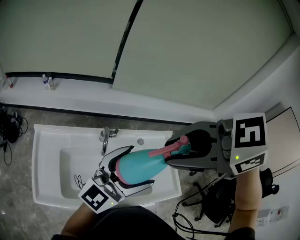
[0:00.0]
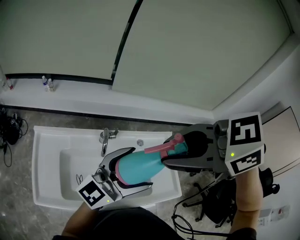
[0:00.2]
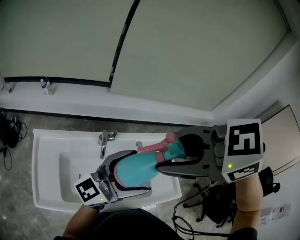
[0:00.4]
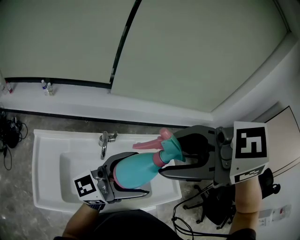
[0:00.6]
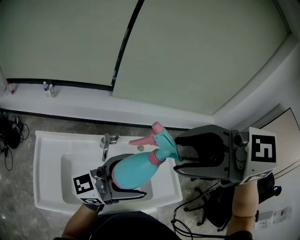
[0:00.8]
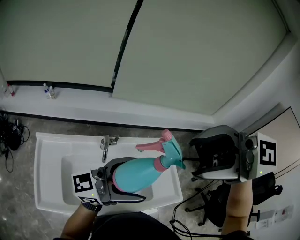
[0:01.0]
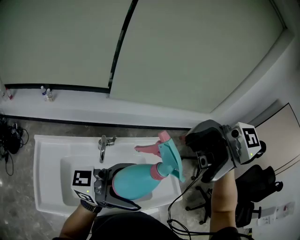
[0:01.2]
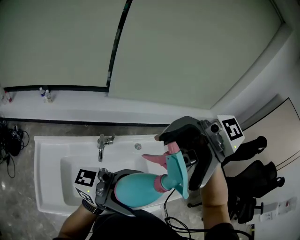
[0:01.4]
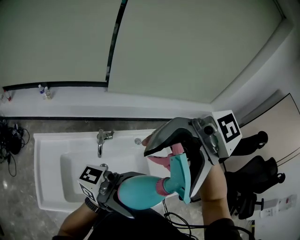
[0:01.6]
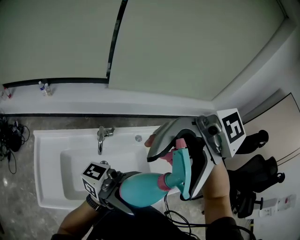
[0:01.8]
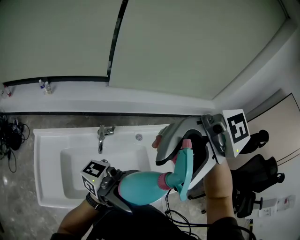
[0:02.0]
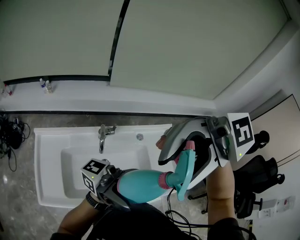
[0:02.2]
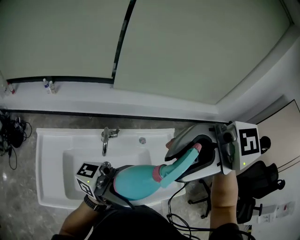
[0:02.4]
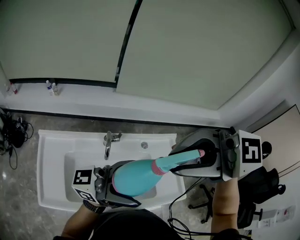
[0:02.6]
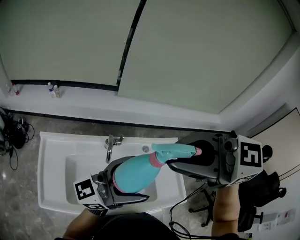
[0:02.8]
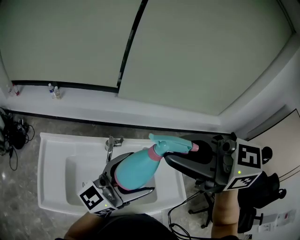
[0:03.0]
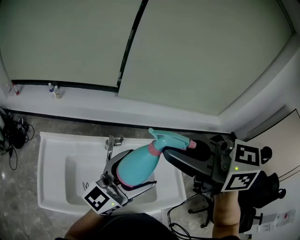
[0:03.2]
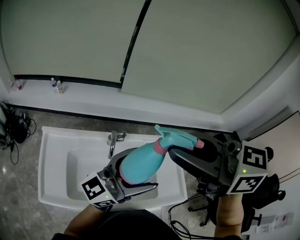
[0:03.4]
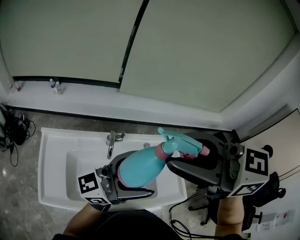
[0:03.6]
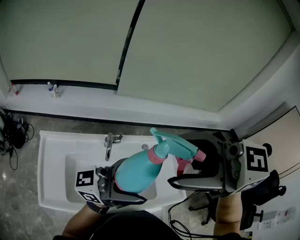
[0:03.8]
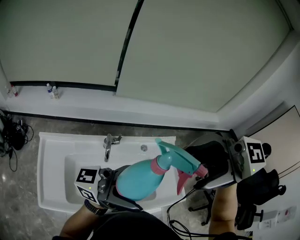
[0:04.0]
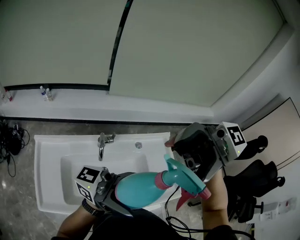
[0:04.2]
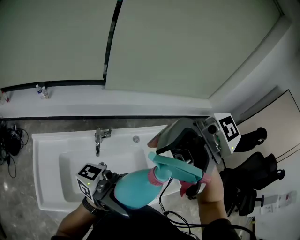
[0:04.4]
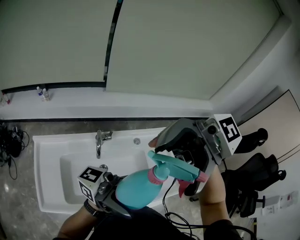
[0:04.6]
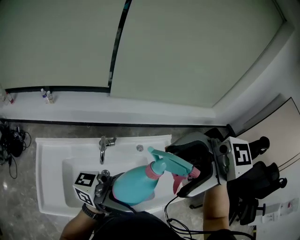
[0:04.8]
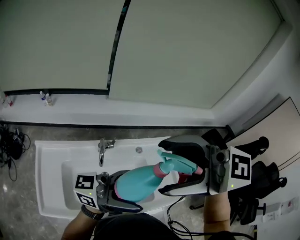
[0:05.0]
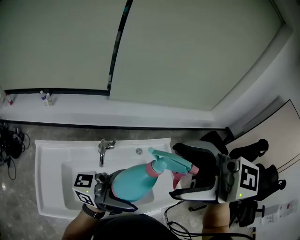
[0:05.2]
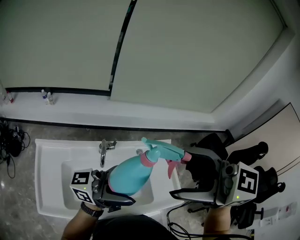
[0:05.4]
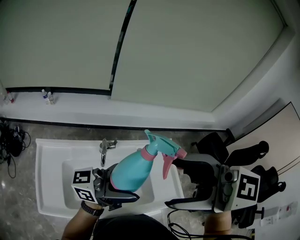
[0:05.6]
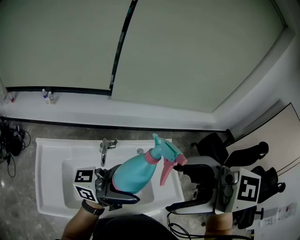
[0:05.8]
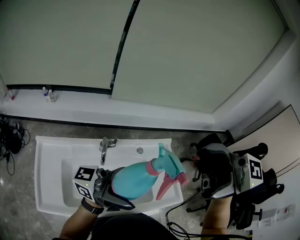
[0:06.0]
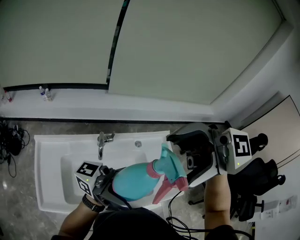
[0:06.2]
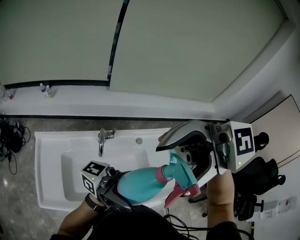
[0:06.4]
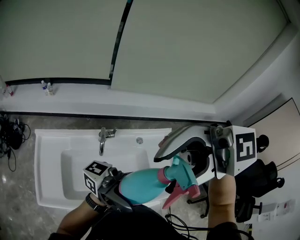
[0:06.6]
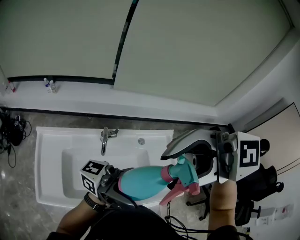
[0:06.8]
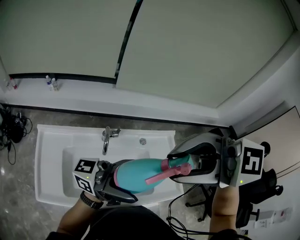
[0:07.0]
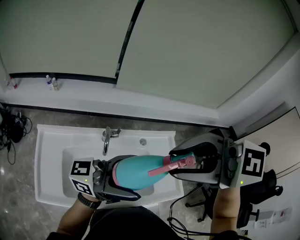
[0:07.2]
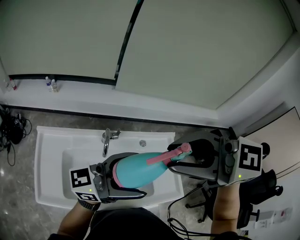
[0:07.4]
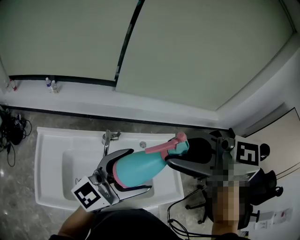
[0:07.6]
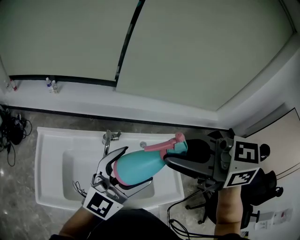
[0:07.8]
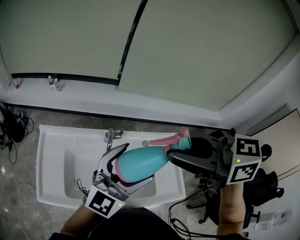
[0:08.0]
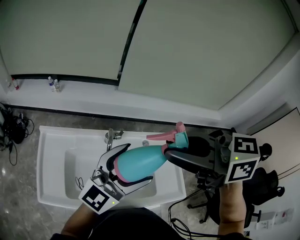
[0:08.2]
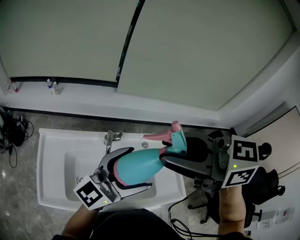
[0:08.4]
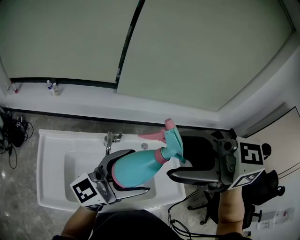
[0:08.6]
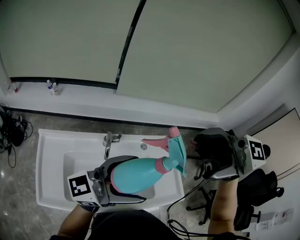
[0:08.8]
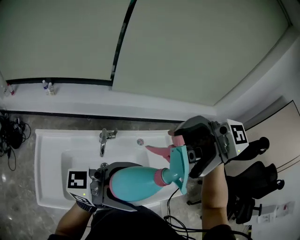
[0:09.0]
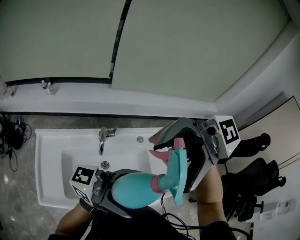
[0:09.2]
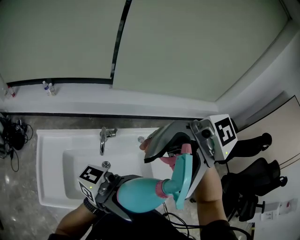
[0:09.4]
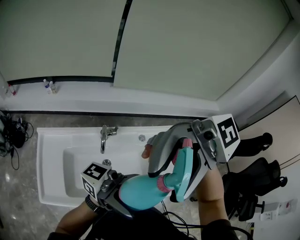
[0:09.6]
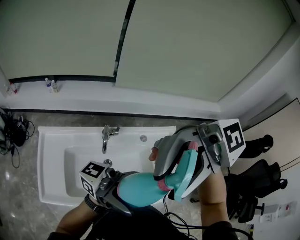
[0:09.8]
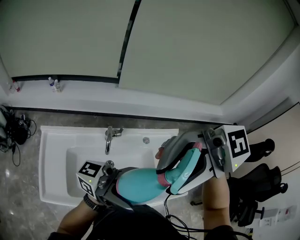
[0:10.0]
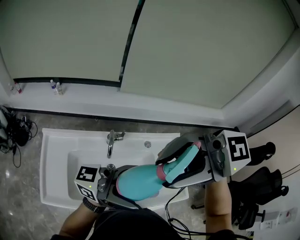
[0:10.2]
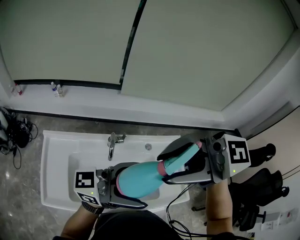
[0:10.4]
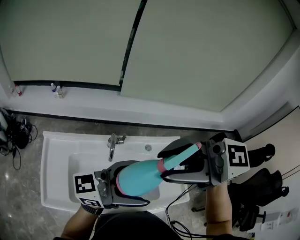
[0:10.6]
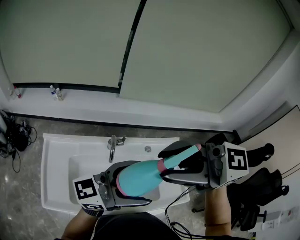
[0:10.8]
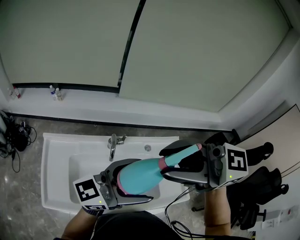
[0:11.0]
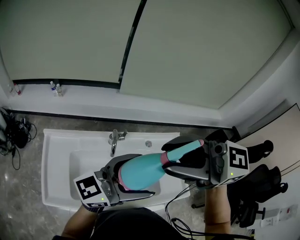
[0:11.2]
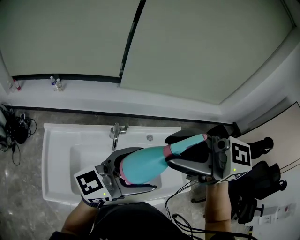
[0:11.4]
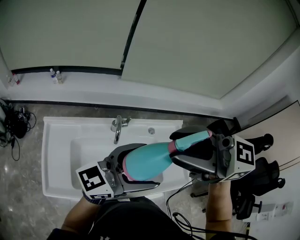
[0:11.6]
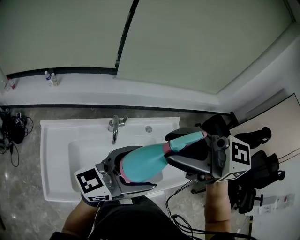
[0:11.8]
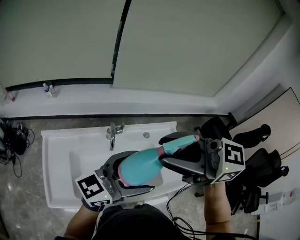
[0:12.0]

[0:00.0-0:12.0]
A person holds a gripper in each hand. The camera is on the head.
0:00.0 to 0:01.6: The left gripper changes place by about 10 cm, and swivels approximately 70 degrees, while the right gripper changes place by about 10 cm, points its fingers about 50 degrees further upward, and opens.
0:01.6 to 0:03.0: The left gripper moves about 10 cm, and turns by approximately 60 degrees; the right gripper changes place by about 10 cm, turns by about 60 degrees, and closes up.
0:03.0 to 0:04.4: The right gripper shifts by about 10 cm, changes its angle by some 60 degrees, and opens; the left gripper shifts by about 10 cm, and turns by about 70 degrees.
0:04.4 to 0:06.0: The right gripper rotates approximately 40 degrees.
0:06.0 to 0:07.6: The left gripper turns by about 60 degrees; the right gripper changes place by roughly 10 cm, changes its angle by approximately 30 degrees, and closes its fingers.
0:07.6 to 0:09.0: The left gripper shifts by roughly 5 cm, and swivels about 40 degrees. The right gripper shifts by roughly 5 cm, swivels about 40 degrees, and opens its fingers.
0:09.0 to 0:10.4: The right gripper moves roughly 5 cm, and closes up.
0:10.4 to 0:12.0: The right gripper swivels roughly 30 degrees, while the left gripper changes its angle by roughly 20 degrees.

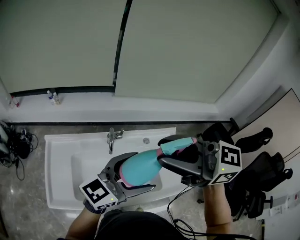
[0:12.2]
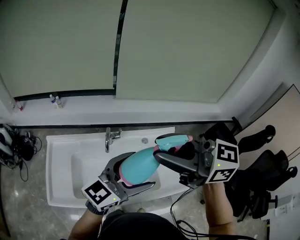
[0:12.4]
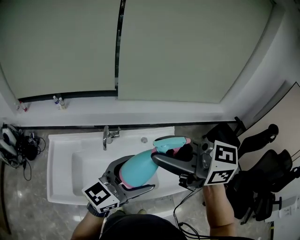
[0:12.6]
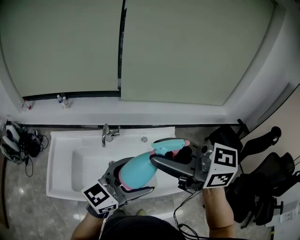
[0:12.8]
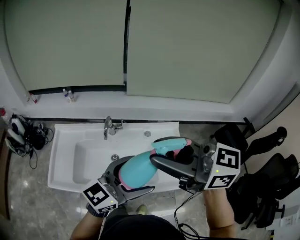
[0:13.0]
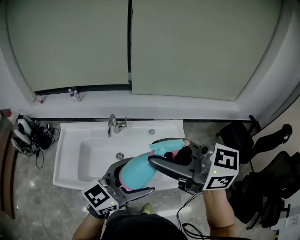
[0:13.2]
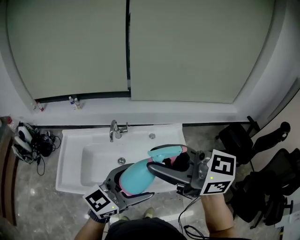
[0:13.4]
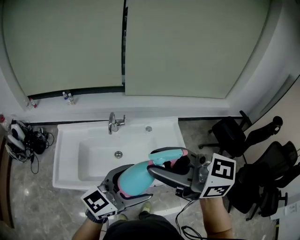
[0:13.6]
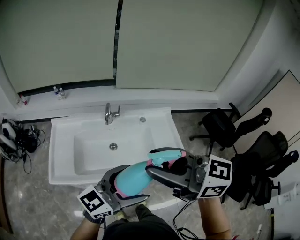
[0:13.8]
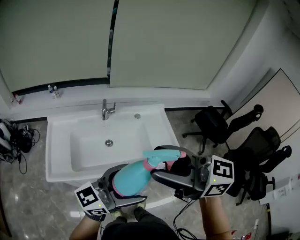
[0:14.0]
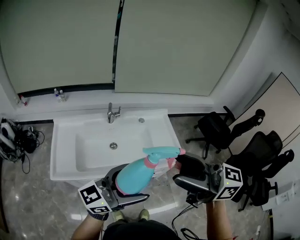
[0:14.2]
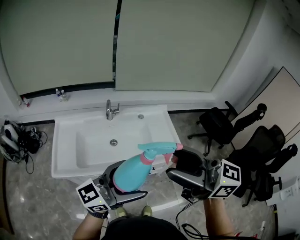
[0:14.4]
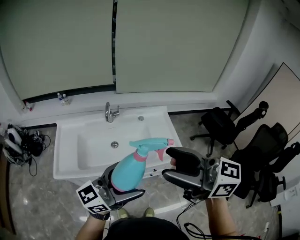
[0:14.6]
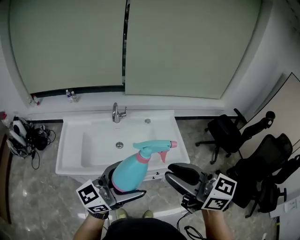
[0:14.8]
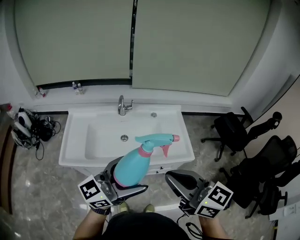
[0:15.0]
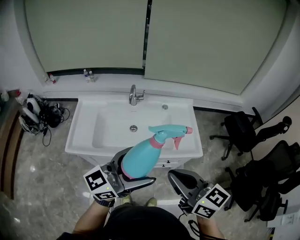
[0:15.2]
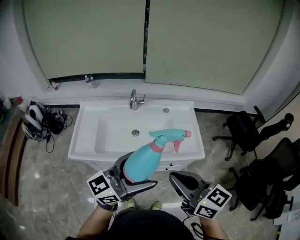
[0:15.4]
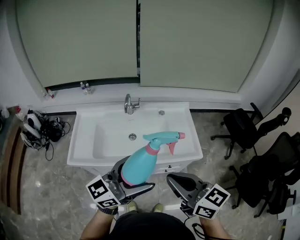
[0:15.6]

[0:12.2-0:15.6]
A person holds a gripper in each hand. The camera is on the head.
0:12.2 to 0:13.8: The right gripper changes place by about 20 cm. Meanwhile the left gripper moves roughly 25 cm.
0:13.8 to 0:15.6: The right gripper changes place by some 20 cm, and closes. The left gripper ends up about 10 cm from where it was.

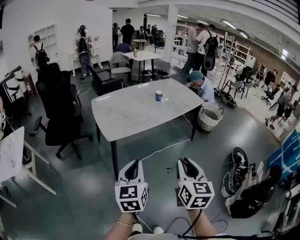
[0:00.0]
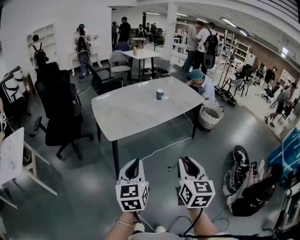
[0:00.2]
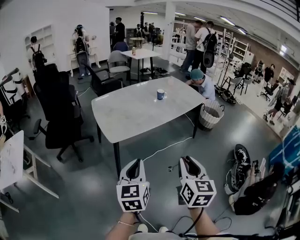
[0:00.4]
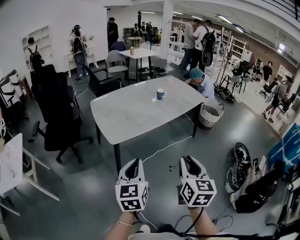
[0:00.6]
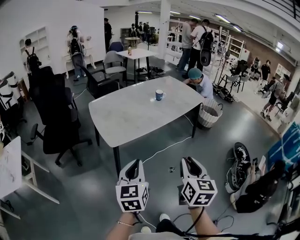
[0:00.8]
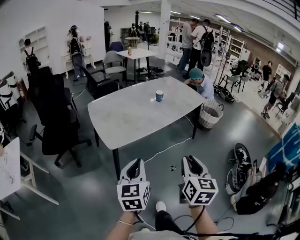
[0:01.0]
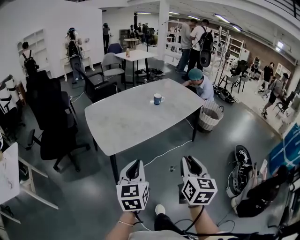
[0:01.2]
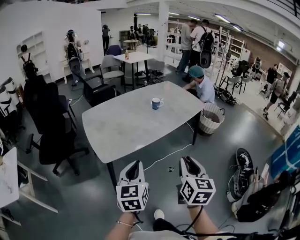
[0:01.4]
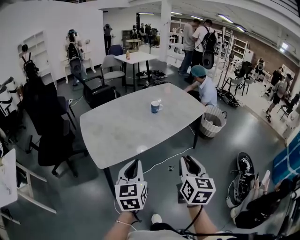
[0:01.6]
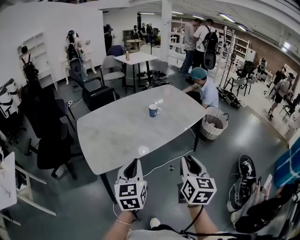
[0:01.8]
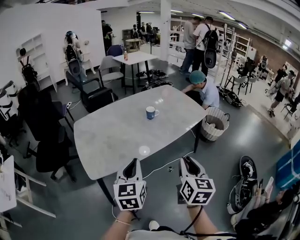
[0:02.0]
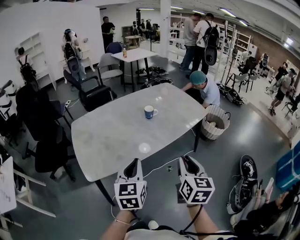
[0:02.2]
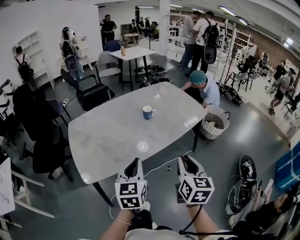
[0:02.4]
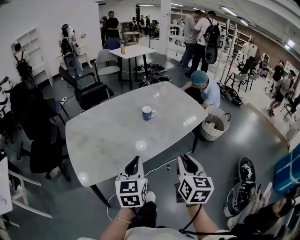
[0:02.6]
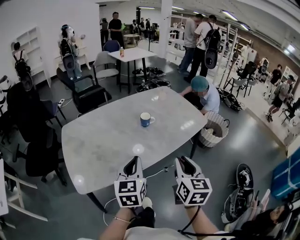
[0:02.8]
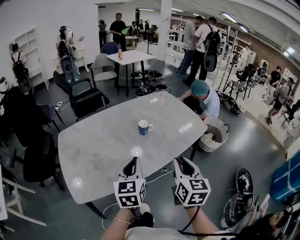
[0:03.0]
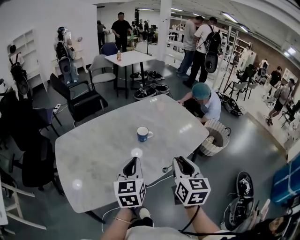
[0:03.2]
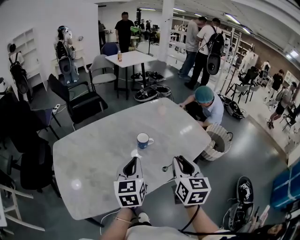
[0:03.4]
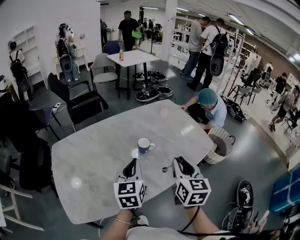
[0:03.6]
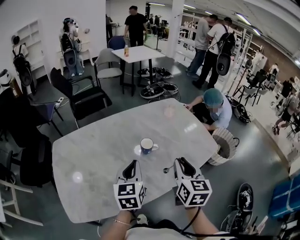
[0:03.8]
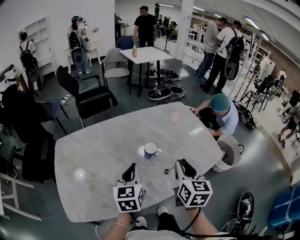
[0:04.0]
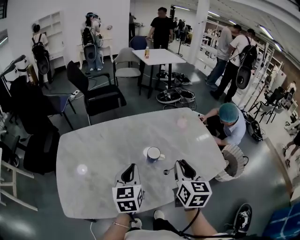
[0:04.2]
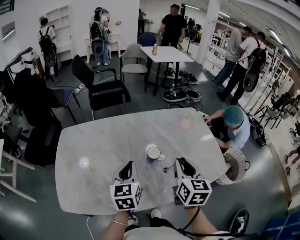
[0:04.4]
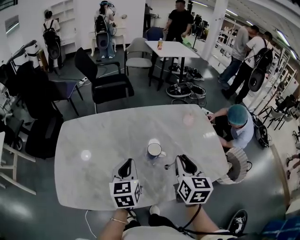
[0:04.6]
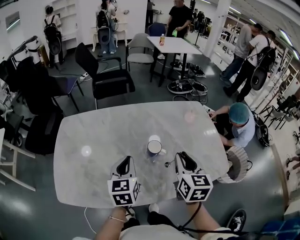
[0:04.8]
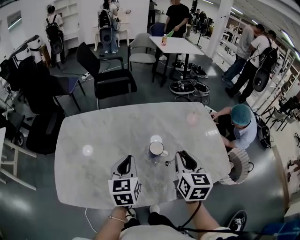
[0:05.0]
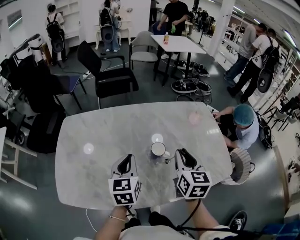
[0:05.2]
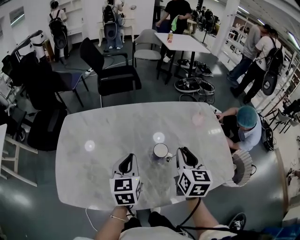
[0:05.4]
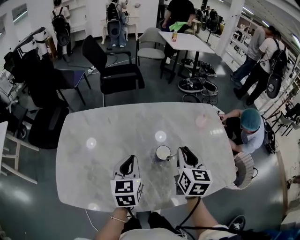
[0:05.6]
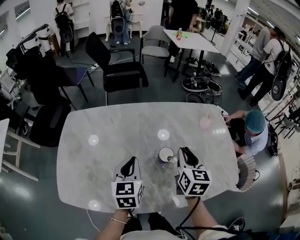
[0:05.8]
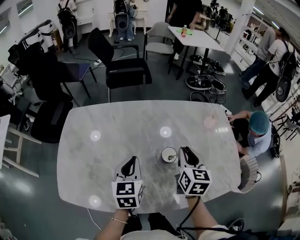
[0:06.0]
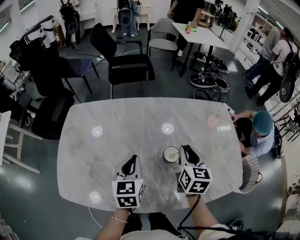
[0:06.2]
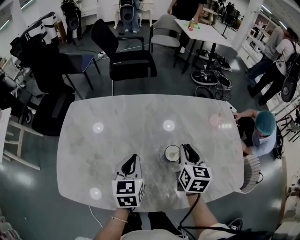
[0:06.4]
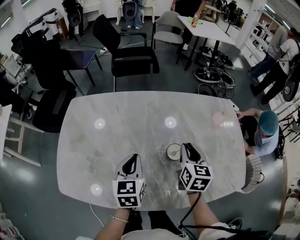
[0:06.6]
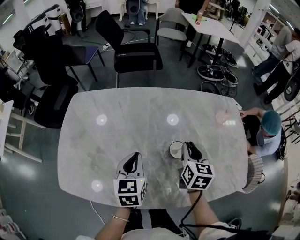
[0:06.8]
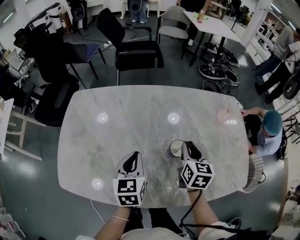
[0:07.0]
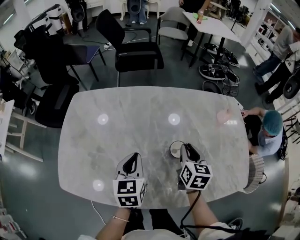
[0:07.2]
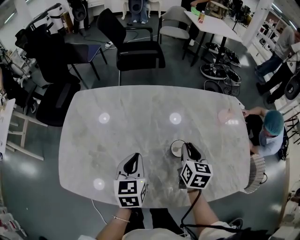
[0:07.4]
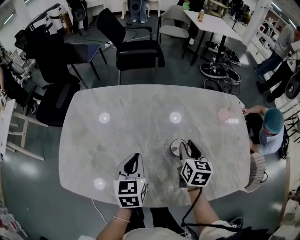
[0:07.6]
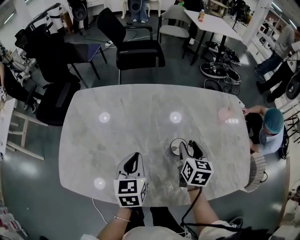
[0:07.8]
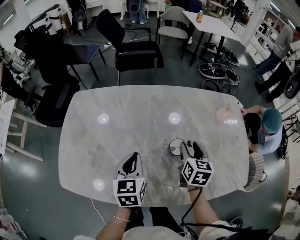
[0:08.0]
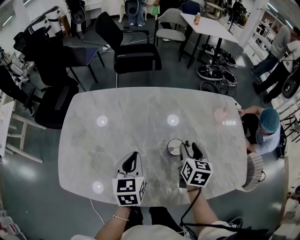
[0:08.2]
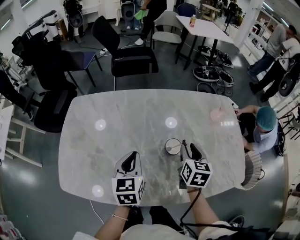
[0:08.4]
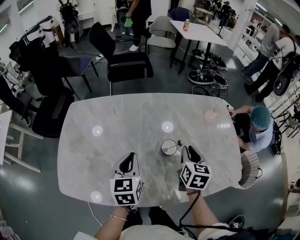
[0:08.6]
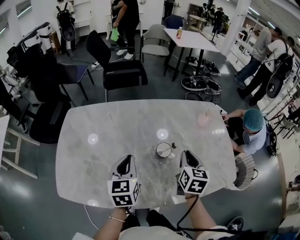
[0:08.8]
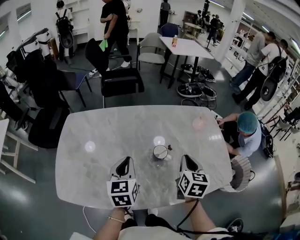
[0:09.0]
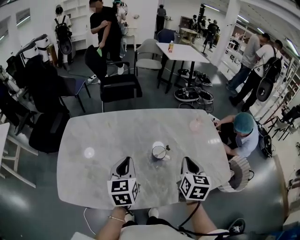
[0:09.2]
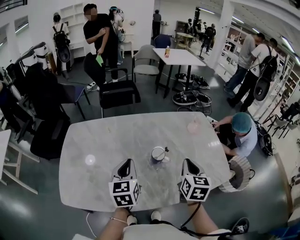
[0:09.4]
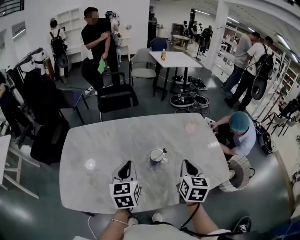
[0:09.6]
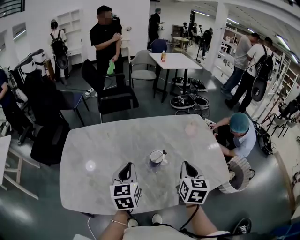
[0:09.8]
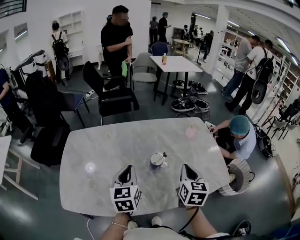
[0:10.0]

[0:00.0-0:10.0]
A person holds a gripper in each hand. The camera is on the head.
0:00.0 to 0:01.4: The grippers both shift forward by some 15 cm.
0:01.4 to 0:02.8: The two grippers go some 25 cm forward.
0:02.8 to 0:04.2: The two grippers go roughly 25 cm forward.
0:04.2 to 0:05.8: The right gripper travels forward and downward by some 15 cm; the left gripper ends up approximately 5 cm from where it was.
0:05.8 to 0:07.2: The left gripper ends up about 5 cm from where it was, while the right gripper is displaced downward by about 10 cm.
0:07.2 to 0:08.6: The right gripper ends up approximately 5 cm from where it was, and opens and closes again.
0:08.6 to 0:10.0: The right gripper moves upward and backward, about 10 cm. Meanwhile the left gripper heads upward, covering some 5 cm.
